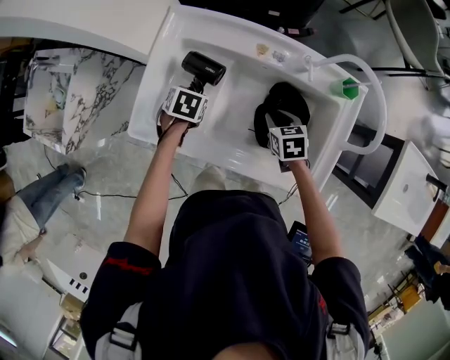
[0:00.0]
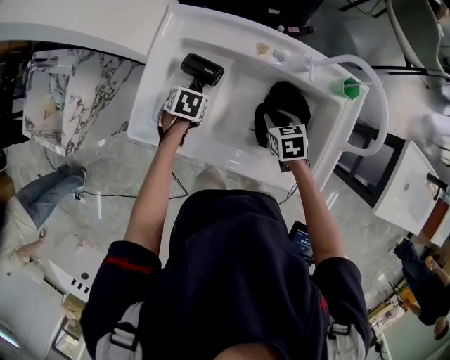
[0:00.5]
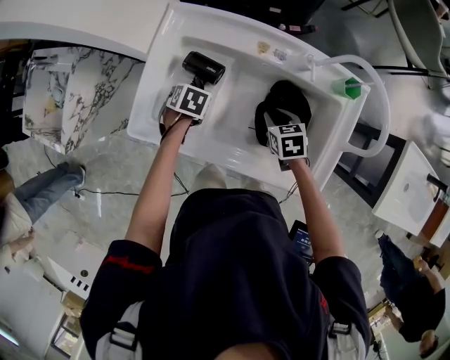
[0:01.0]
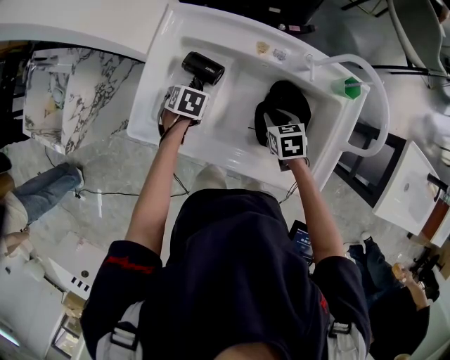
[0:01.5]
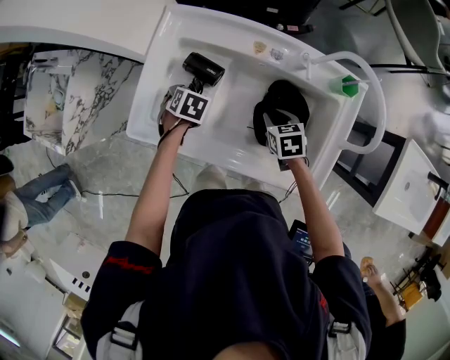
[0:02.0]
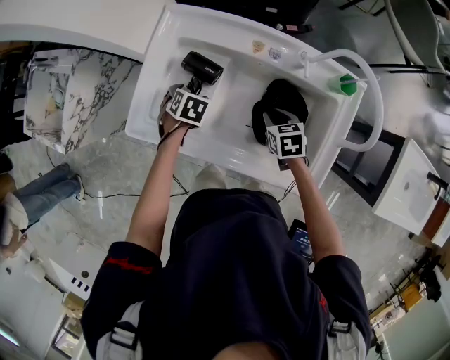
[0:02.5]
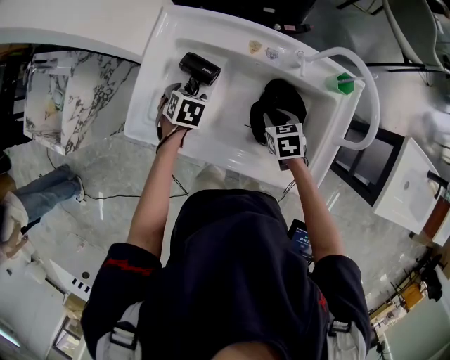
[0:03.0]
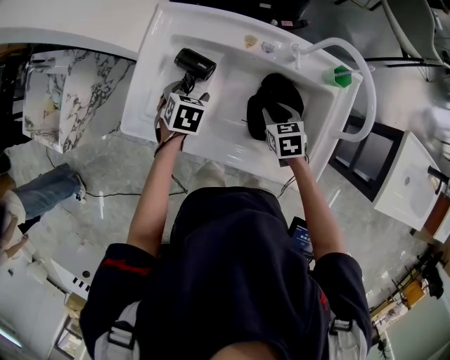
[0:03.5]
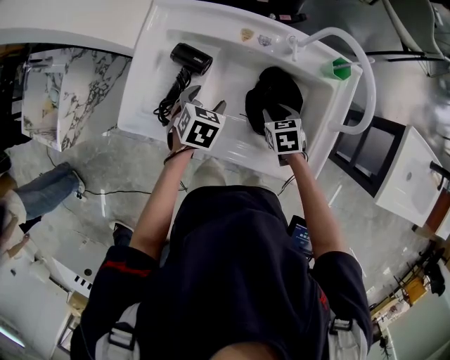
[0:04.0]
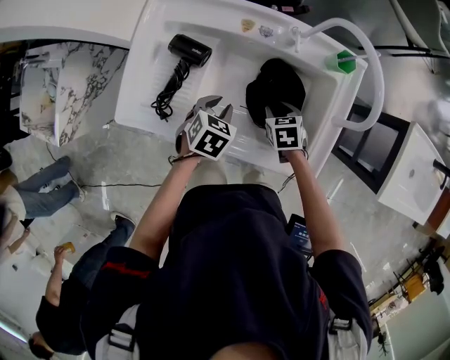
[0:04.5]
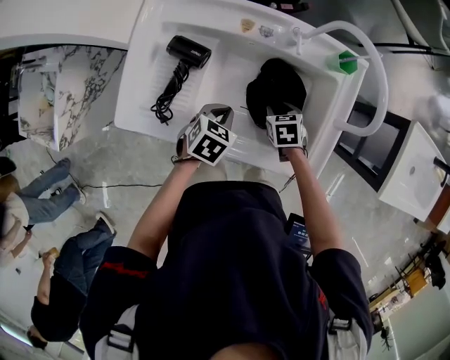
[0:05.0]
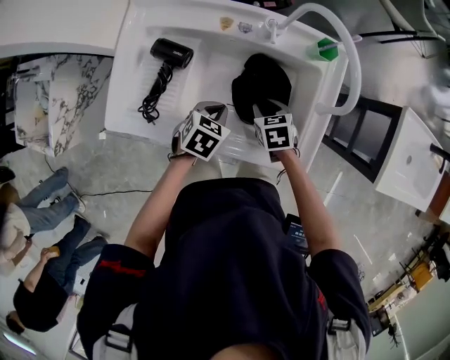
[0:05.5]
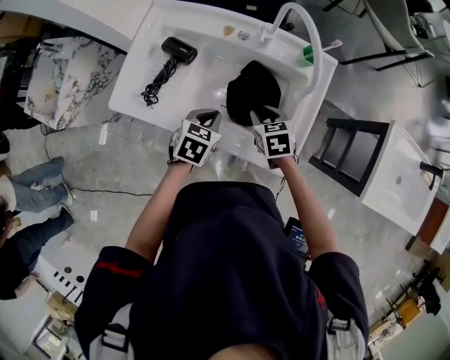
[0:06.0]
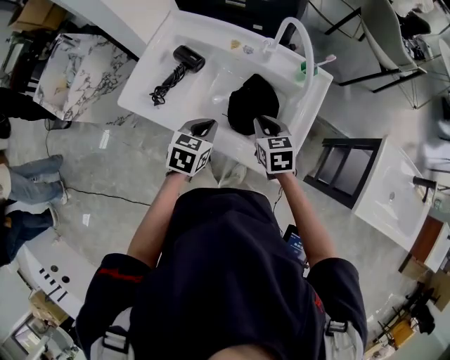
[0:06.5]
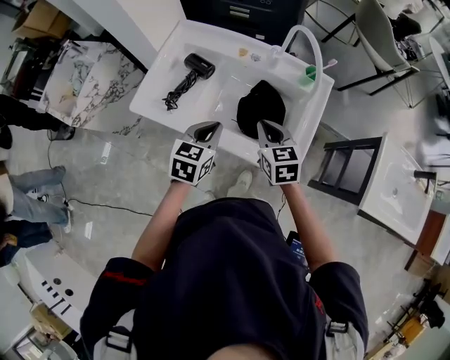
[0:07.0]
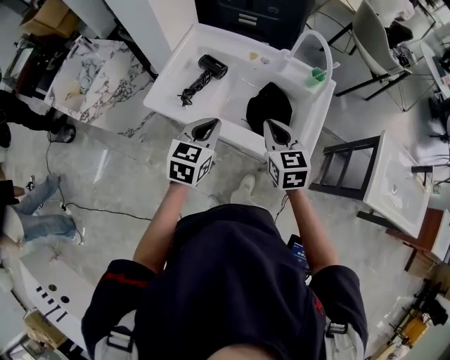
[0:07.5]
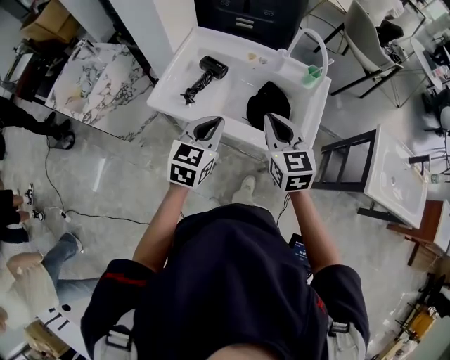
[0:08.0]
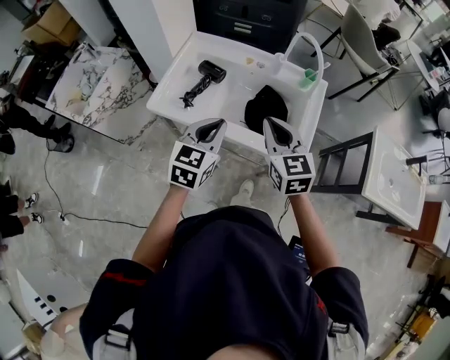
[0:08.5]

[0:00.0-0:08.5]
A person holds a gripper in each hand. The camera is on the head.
0:00.0 to 0:02.0: There are only small adjustments of the grippers.
0:02.0 to 0:04.0: The left gripper moves roughly 10 cm.
0:04.0 to 0:06.5: The left gripper moves backward, to the right and upward, roughly 15 cm, swivels about 20 degrees, and closes its fingers, while the right gripper shifts about 15 cm upward and backward.
0:06.5 to 0:08.5: The two grippers go some 20 cm upward, backward and to the left. The left gripper swivels some 30 degrees; the right gripper changes its angle by roughly 30 degrees.

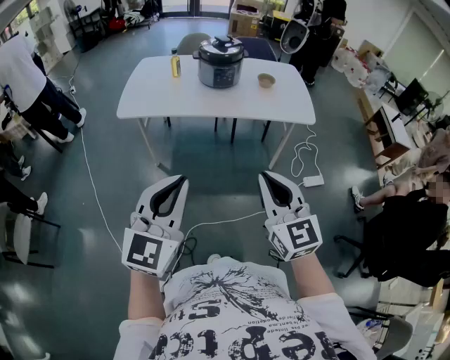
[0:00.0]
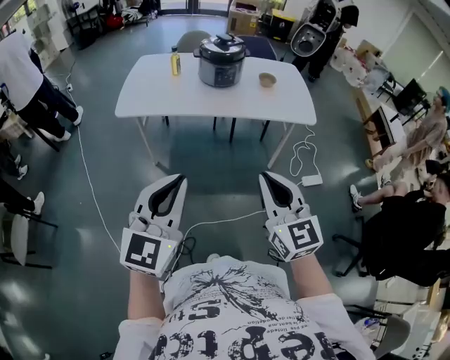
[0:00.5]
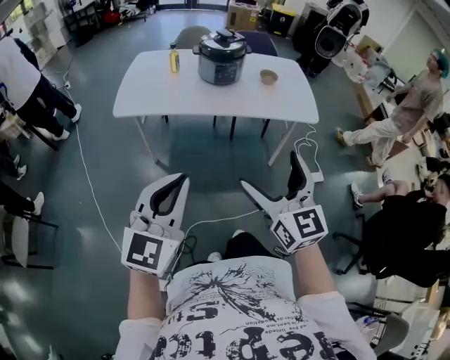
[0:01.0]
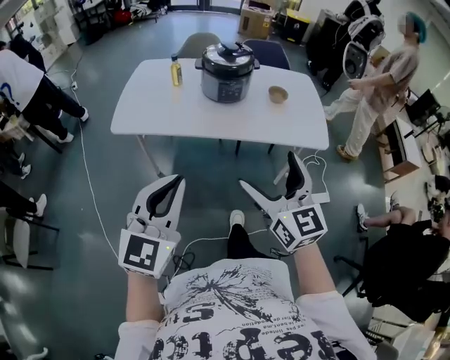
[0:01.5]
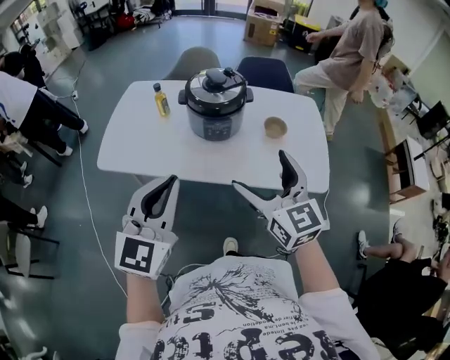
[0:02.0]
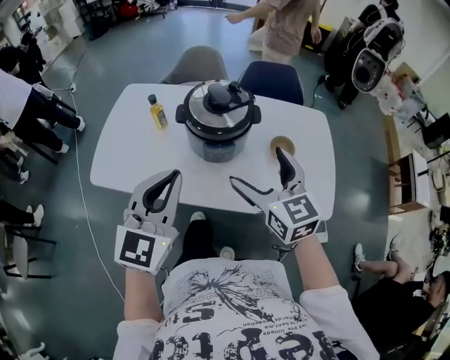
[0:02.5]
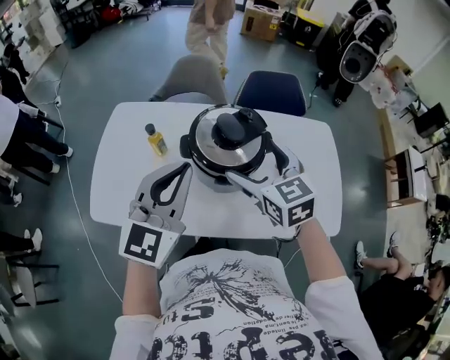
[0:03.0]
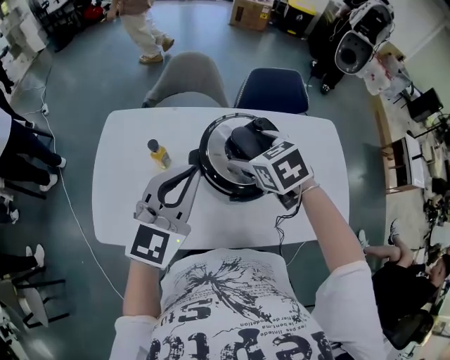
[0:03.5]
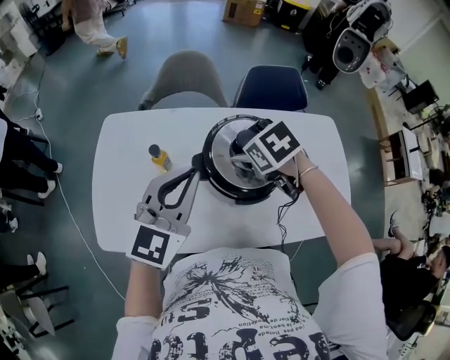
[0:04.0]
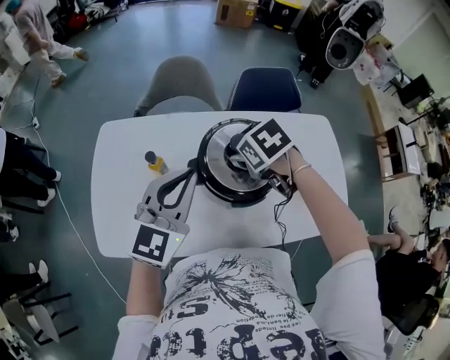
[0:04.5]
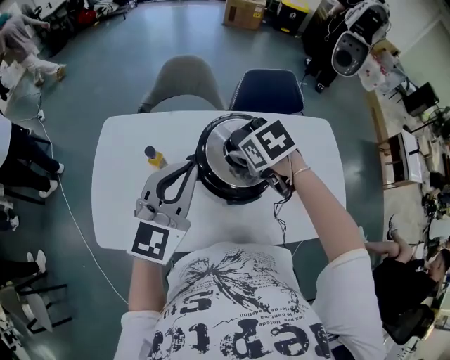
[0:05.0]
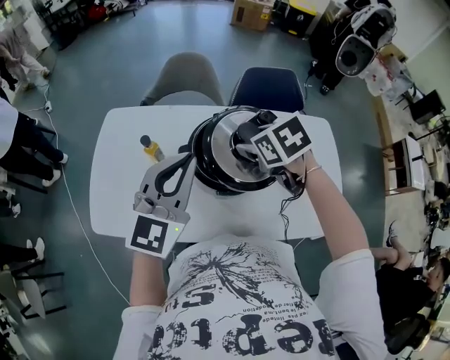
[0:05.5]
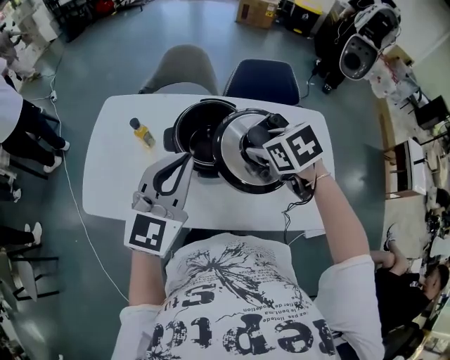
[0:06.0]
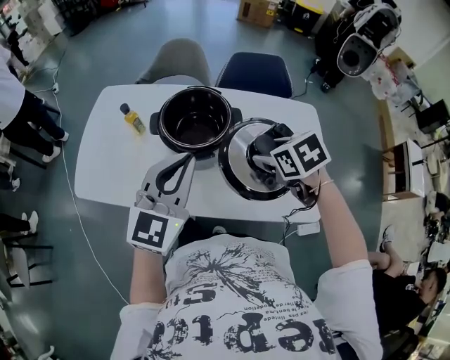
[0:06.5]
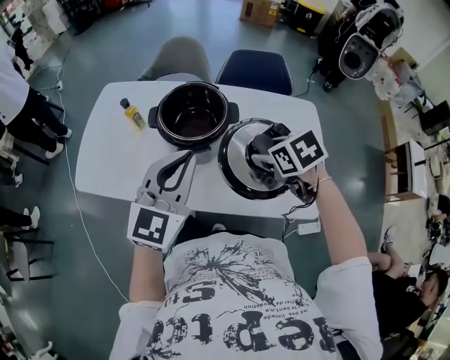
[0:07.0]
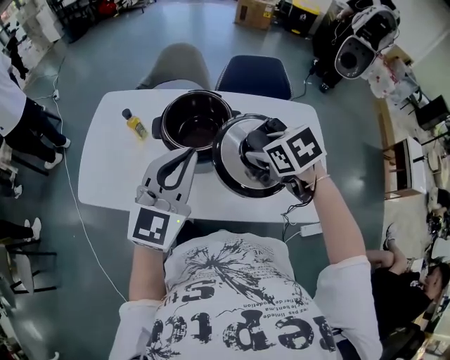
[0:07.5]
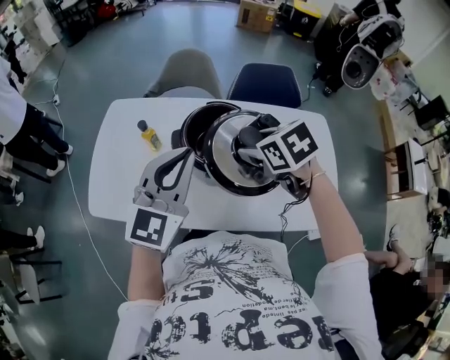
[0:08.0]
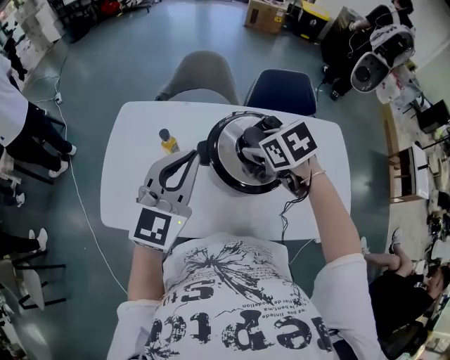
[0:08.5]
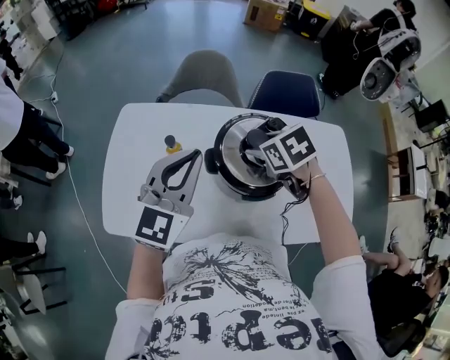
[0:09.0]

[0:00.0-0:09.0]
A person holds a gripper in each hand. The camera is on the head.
0:00.0 to 0:02.0: Both grippers are carried forward, about 50 cm. The right gripper opens up.
0:02.0 to 0:04.5: Both grippers are carried forward, approximately 50 cm. The right gripper angles its fingers downward, by roughly 60 degrees, and closes its fingers.
0:04.5 to 0:07.0: The right gripper travels to the right and backward by approximately 30 cm, while the left gripper is displaced backward and to the right by about 30 cm.
0:07.0 to 0:09.0: Both grippers travel together to the left and forward, roughly 30 cm.

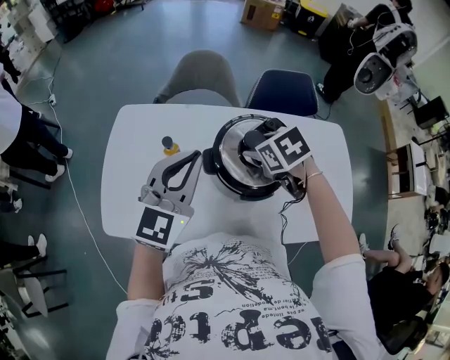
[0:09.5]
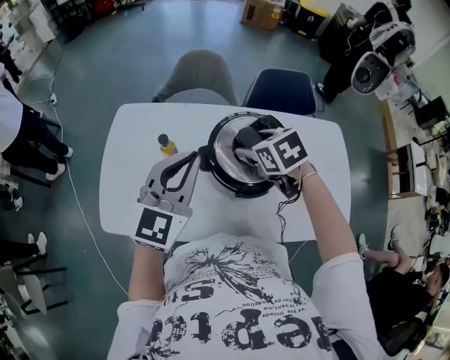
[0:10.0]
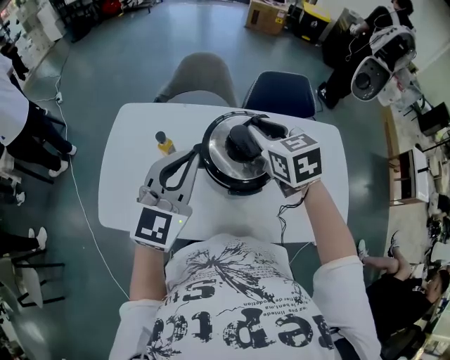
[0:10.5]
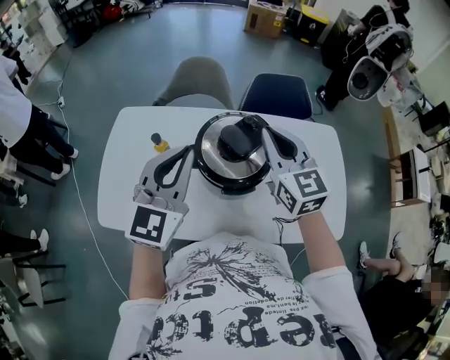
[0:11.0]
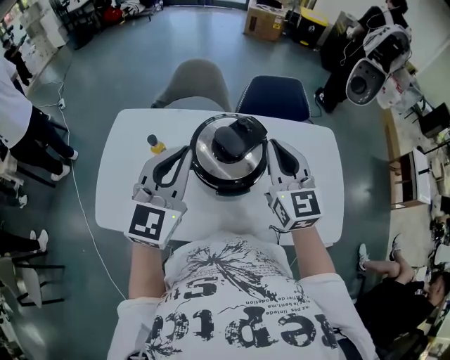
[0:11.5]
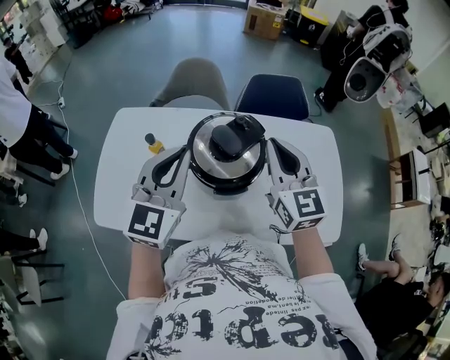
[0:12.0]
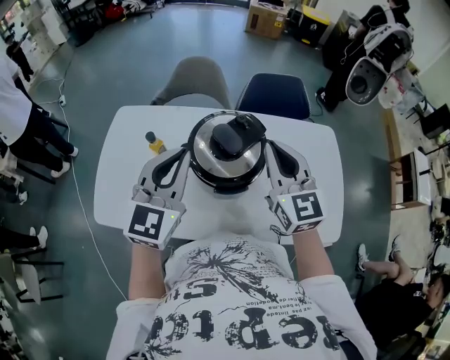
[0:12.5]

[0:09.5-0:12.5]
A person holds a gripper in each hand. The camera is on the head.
0:09.5 to 0:11.0: The right gripper goes some 15 cm upward and to the right, angles its fingers upward, by about 50 degrees, and closes, while the left gripper moves to the right and upward, some 10 cm.
0:11.0 to 0:12.5: The right gripper ends up about 5 cm from where it was.

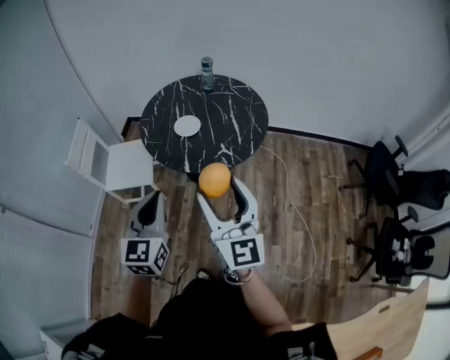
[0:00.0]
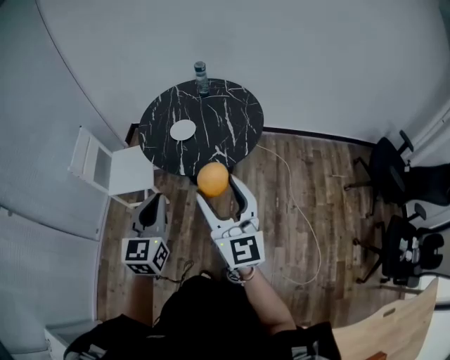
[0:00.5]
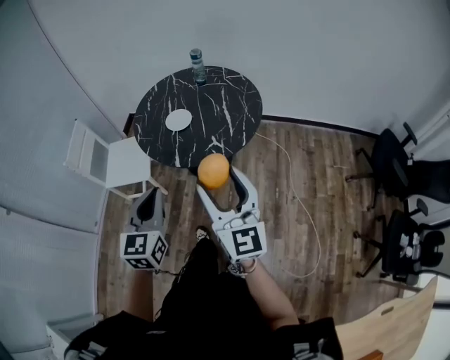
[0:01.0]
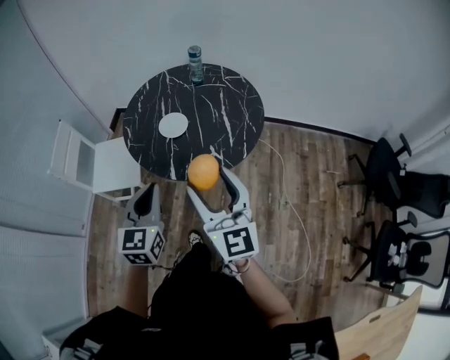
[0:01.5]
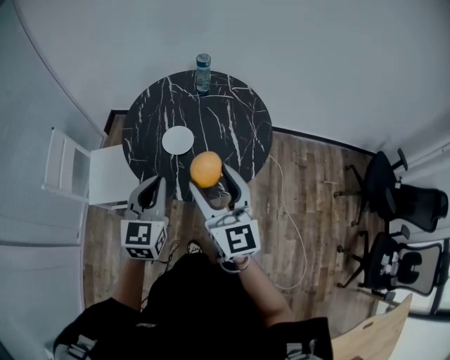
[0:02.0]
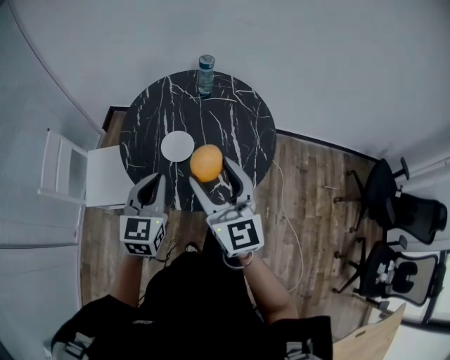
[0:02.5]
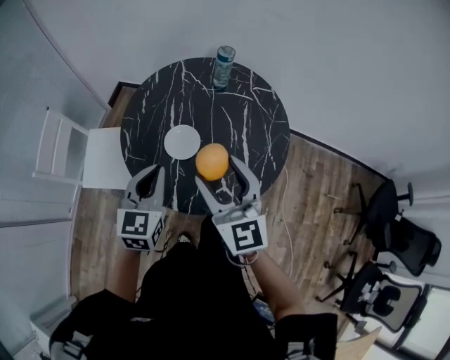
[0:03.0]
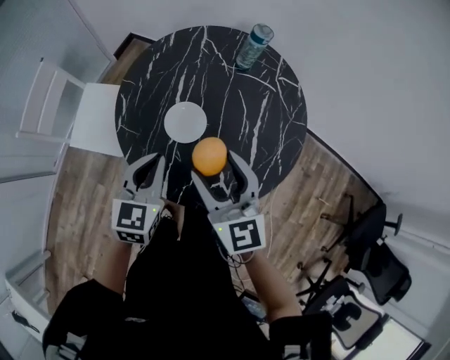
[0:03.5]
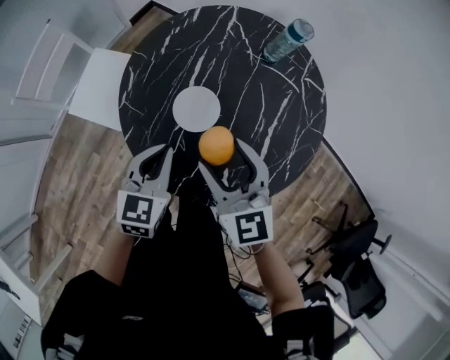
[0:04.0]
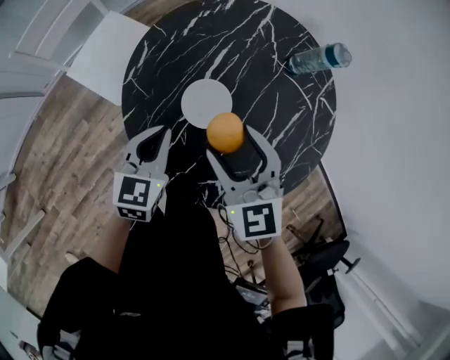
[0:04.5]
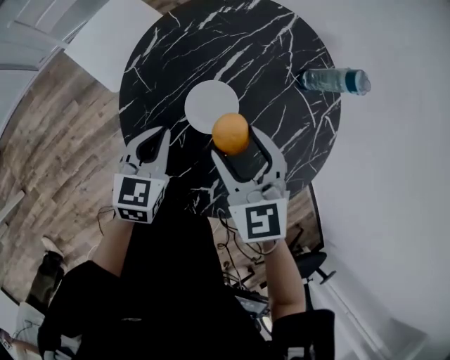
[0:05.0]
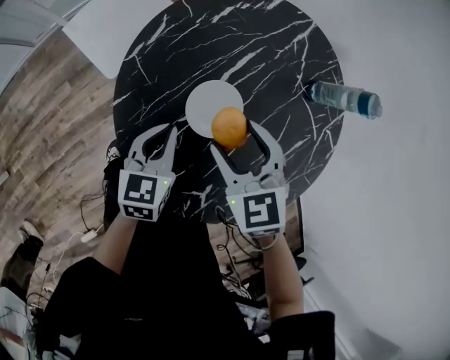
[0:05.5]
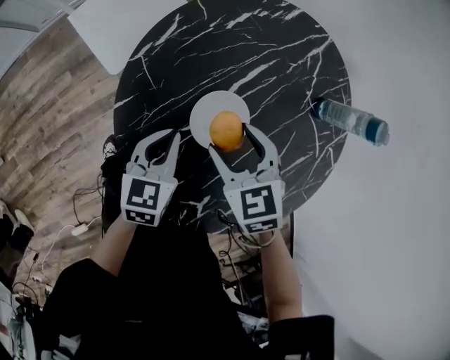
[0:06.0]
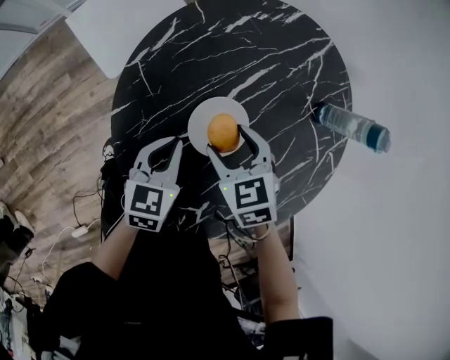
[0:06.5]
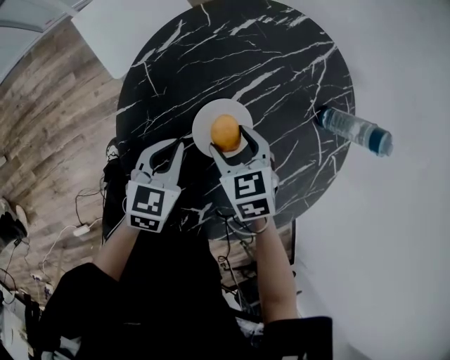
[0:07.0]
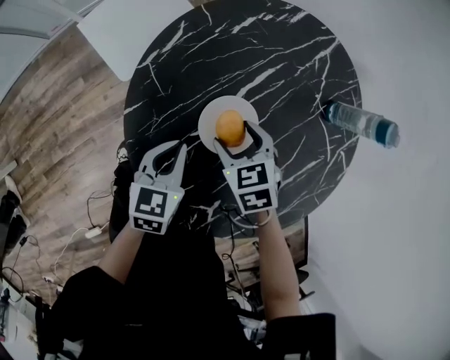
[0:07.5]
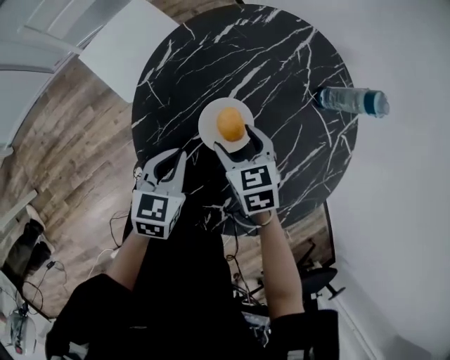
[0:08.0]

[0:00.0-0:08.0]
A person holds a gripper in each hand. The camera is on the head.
0:00.0 to 0:02.0: The grippers both shift forward by about 25 cm.
0:02.0 to 0:04.0: The two grippers go about 25 cm forward and downward. The right gripper changes its angle by approximately 40 degrees; the left gripper swivels roughly 30 degrees.
0:04.0 to 0:06.0: The left gripper shifts some 15 cm downward, and changes its angle by approximately 30 degrees. The right gripper goes about 20 cm downward and forward, and tips its fingers downward by roughly 30 degrees.
